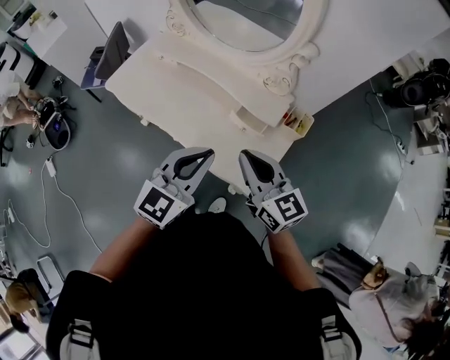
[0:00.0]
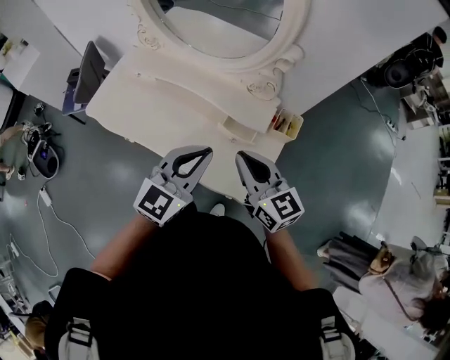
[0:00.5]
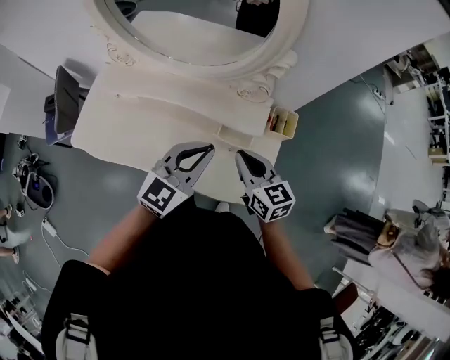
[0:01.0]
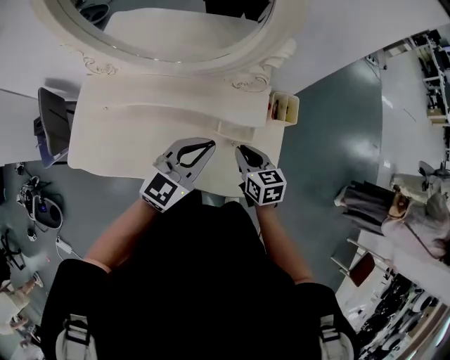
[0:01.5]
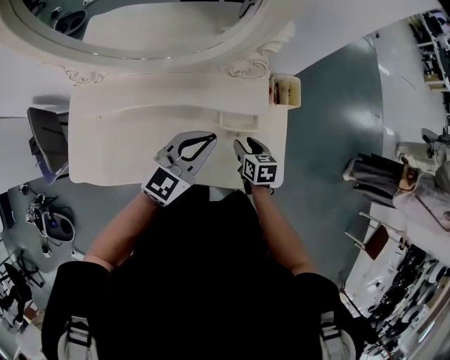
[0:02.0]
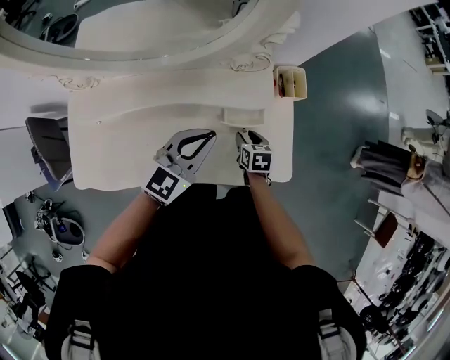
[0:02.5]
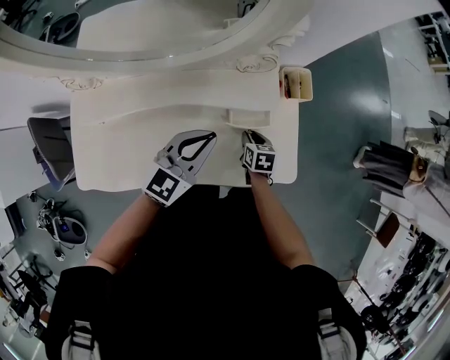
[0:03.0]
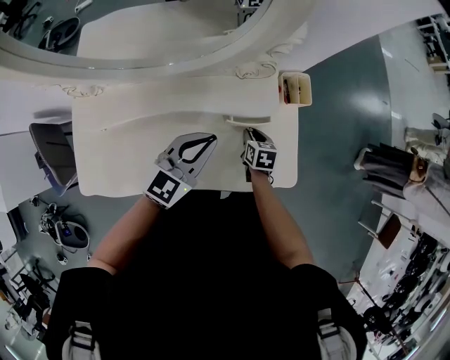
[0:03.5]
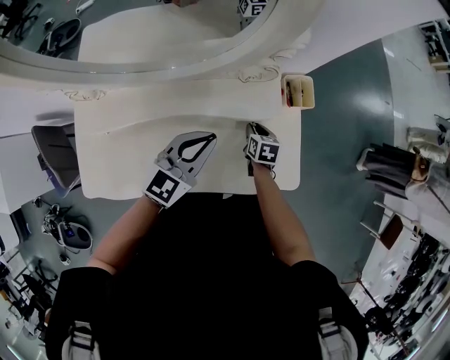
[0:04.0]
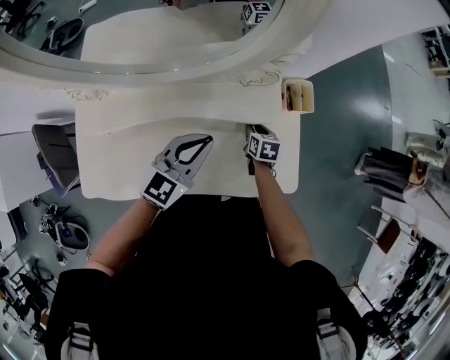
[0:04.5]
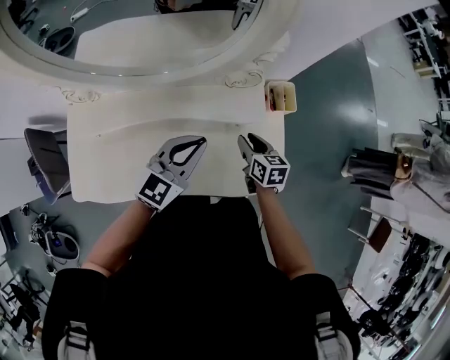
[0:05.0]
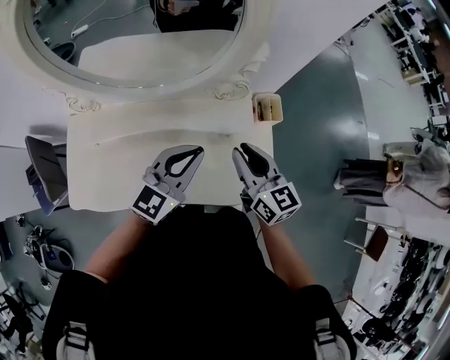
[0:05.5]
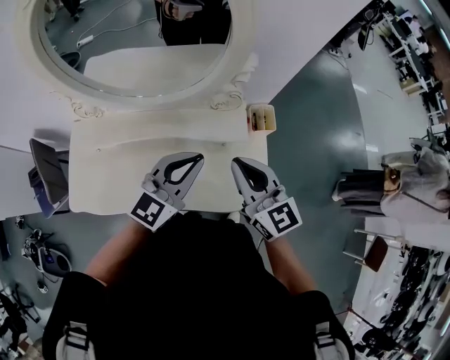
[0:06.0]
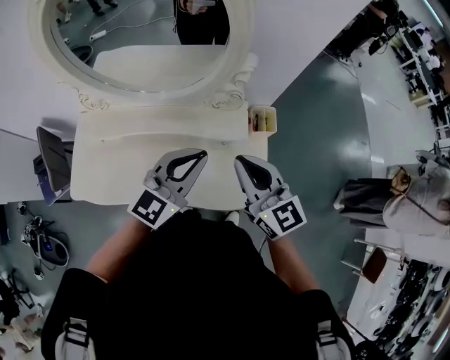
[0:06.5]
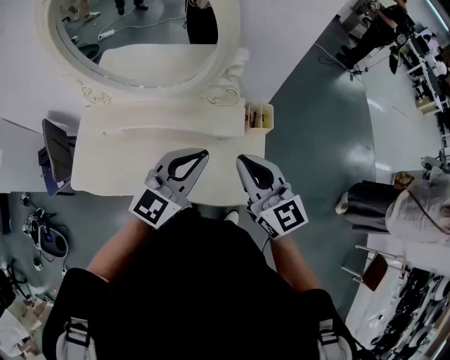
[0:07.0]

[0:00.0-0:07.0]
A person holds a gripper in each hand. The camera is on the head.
0:00.0 to 0:02.0: The right gripper shifts roughly 30 cm downward, angles its fingers downward, by about 40 degrees, and opens; the left gripper changes place by roughly 25 cm, and rotates approximately 40 degrees.
0:02.0 to 0:03.5: The right gripper moves downward, about 5 cm.
0:03.5 to 0:05.0: The right gripper is displaced upward by approximately 10 cm.
0:05.0 to 0:07.0: The right gripper shifts roughly 30 cm upward, tilts its fingers some 30 degrees upward, and closes its fingers; the left gripper goes roughly 20 cm upward, to the right and backward.

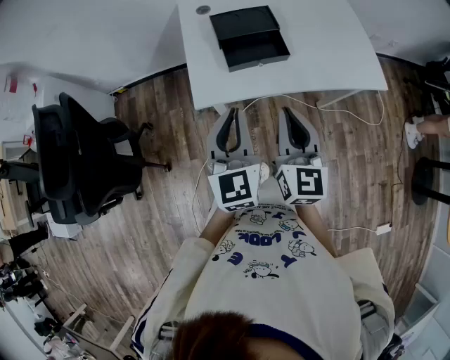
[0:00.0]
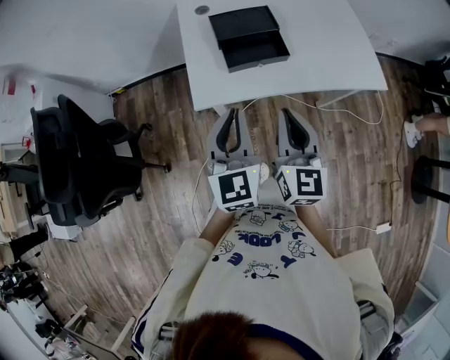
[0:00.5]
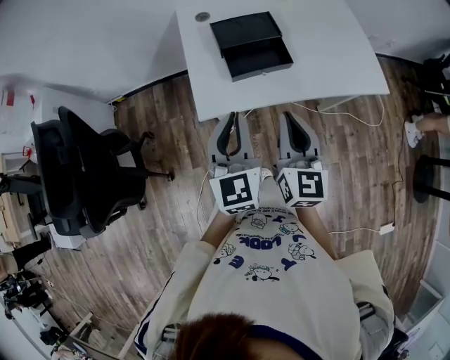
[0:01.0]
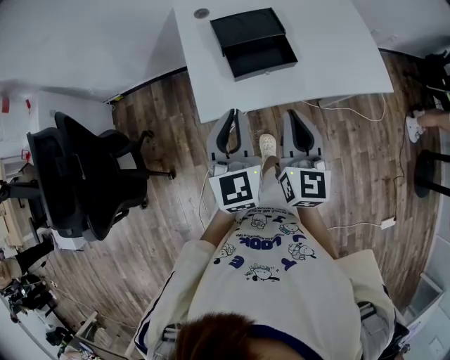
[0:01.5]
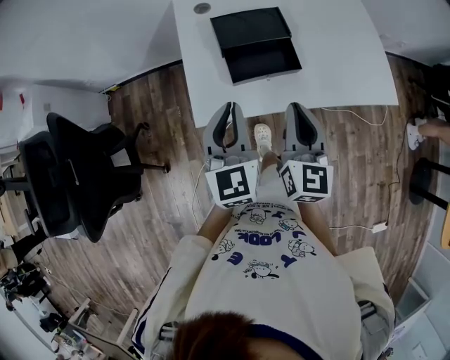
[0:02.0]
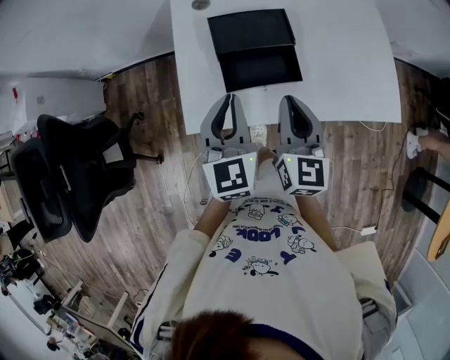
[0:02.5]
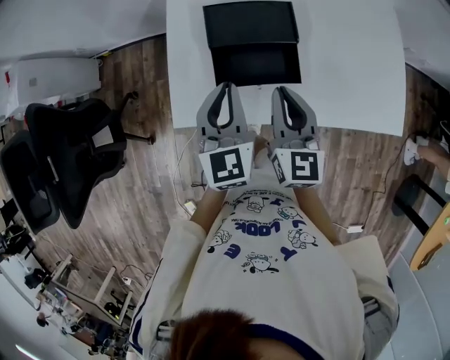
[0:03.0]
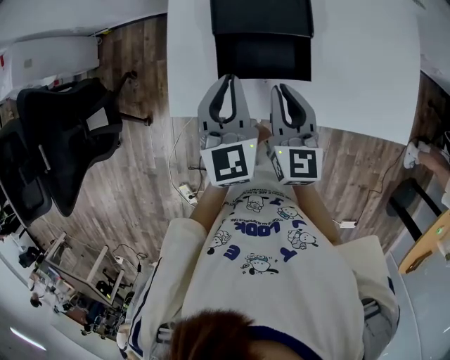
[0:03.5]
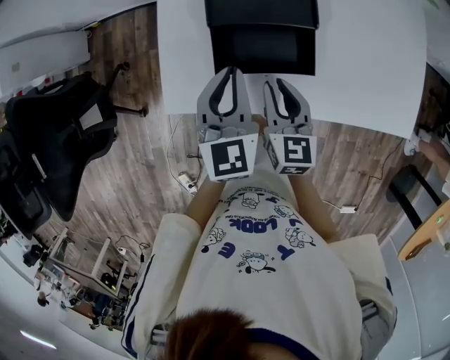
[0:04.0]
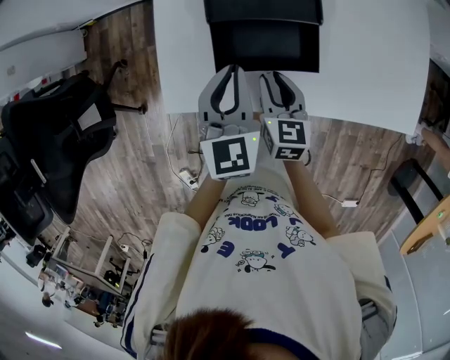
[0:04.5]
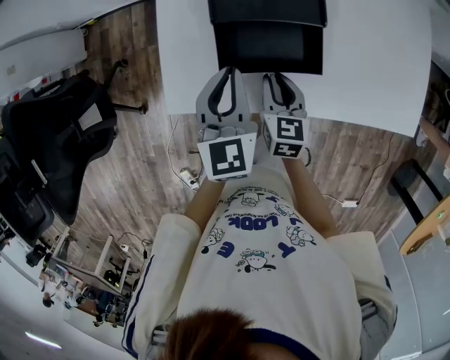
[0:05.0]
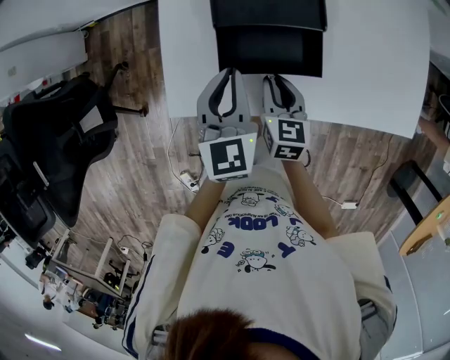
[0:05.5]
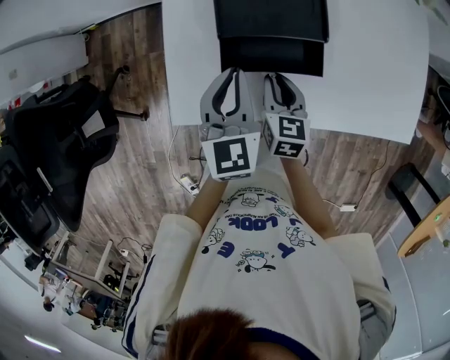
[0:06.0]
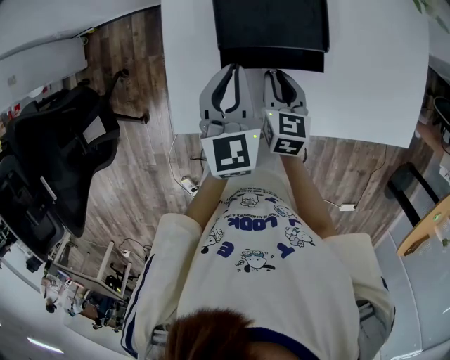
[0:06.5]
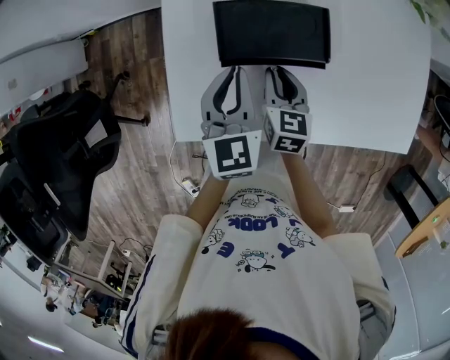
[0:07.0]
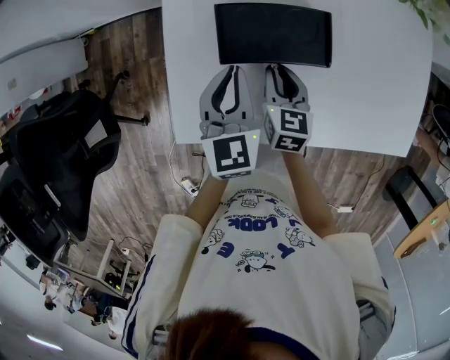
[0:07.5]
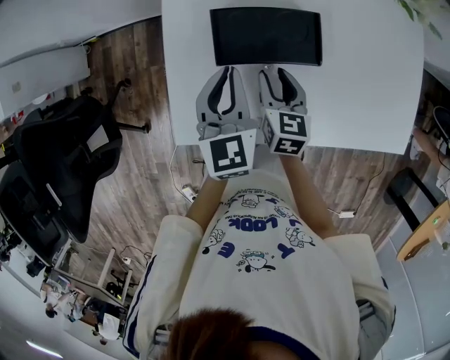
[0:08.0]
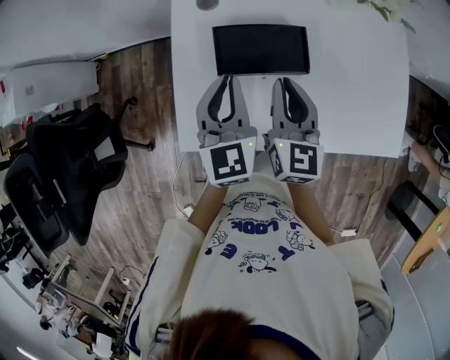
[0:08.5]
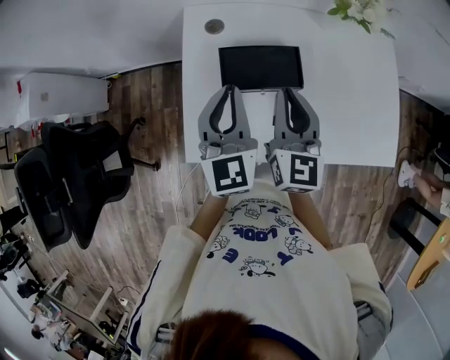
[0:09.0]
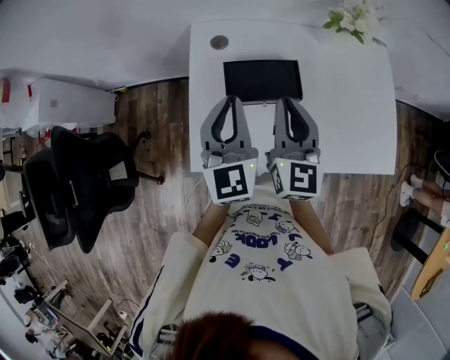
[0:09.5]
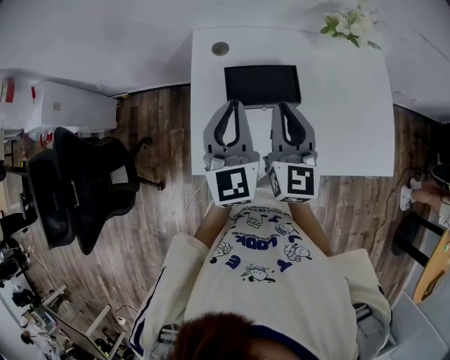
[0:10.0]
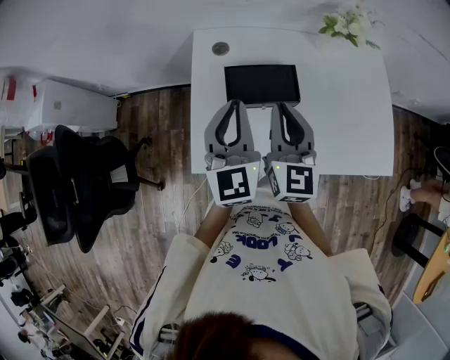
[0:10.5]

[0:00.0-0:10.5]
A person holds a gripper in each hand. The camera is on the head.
0:00.0 to 0:02.0: Both grippers travel together forward, some 10 cm.
0:02.0 to 0:04.0: The left gripper moves forward, downward and to the right, some 15 cm. Meanwhile the right gripper heads downward and forward, covering about 20 cm, and changes its angle by about 30 degrees.
0:04.0 to 0:06.5: The left gripper heads forward, covering roughly 5 cm; the right gripper is displaced forward and downward by roughly 10 cm.
0:06.5 to 0:08.5: The left gripper moves upward, about 5 cm. The right gripper shifts some 15 cm upward, turns by roughly 20 degrees, and opens, then closes again.
0:08.5 to 0:10.5: Both grippers travel together upward, about 10 cm.

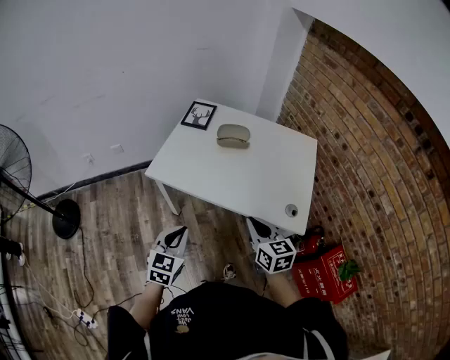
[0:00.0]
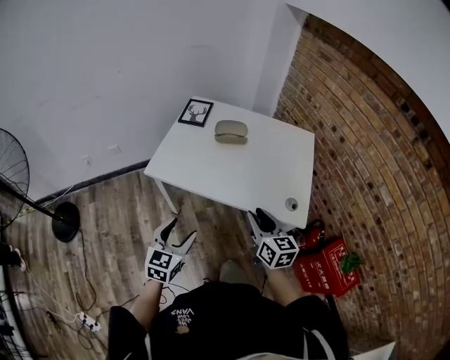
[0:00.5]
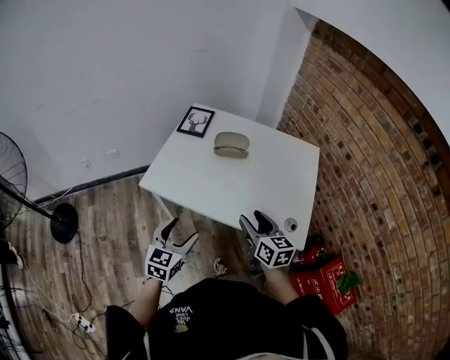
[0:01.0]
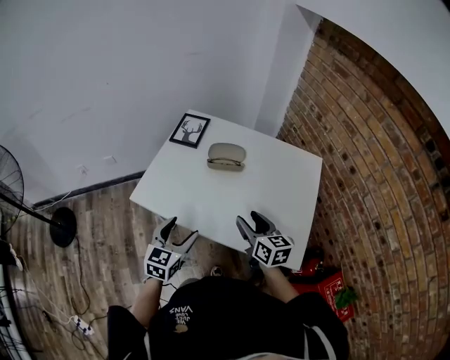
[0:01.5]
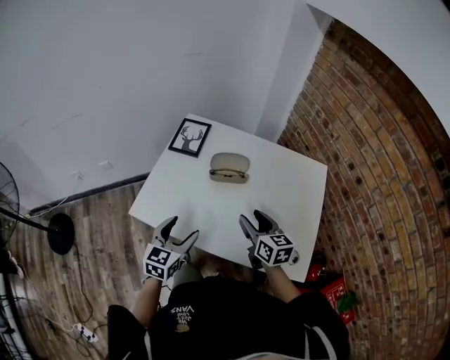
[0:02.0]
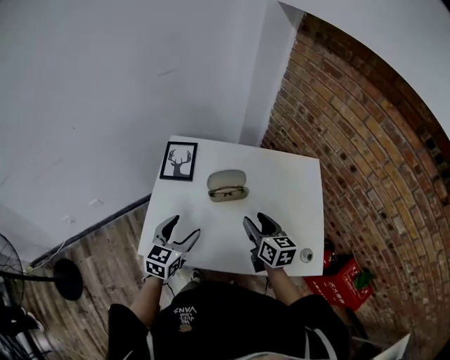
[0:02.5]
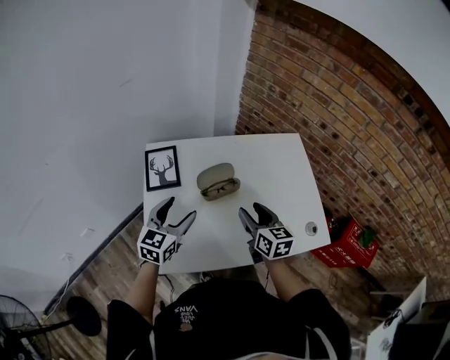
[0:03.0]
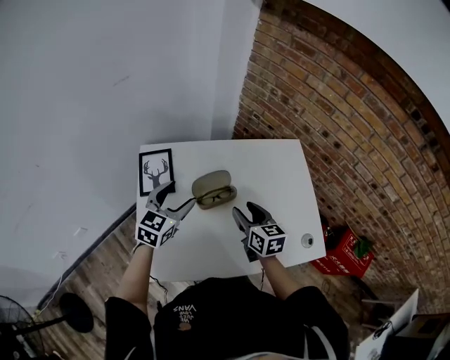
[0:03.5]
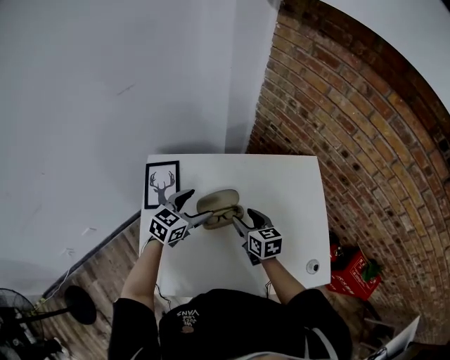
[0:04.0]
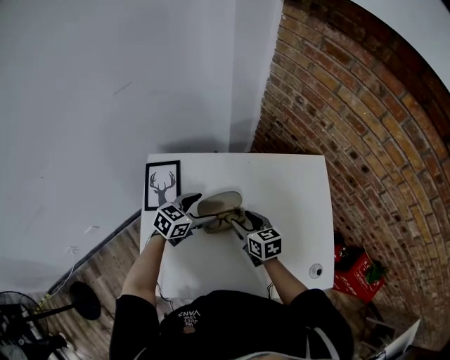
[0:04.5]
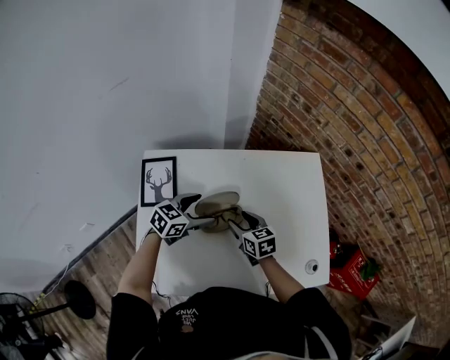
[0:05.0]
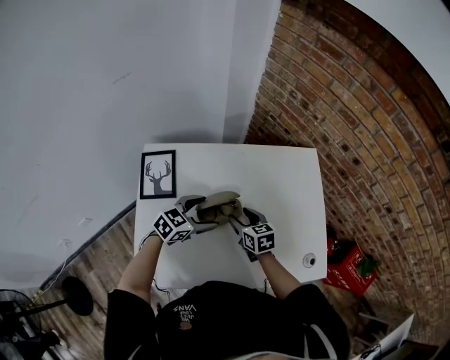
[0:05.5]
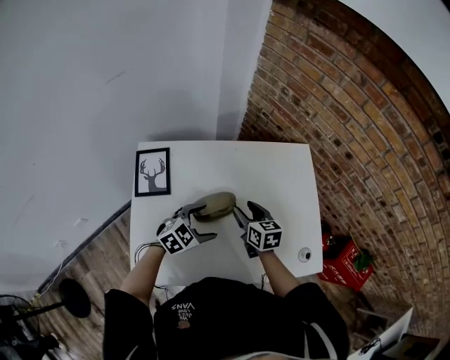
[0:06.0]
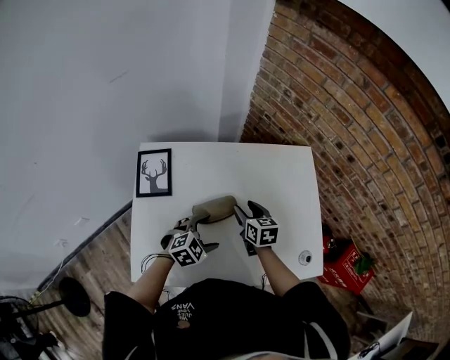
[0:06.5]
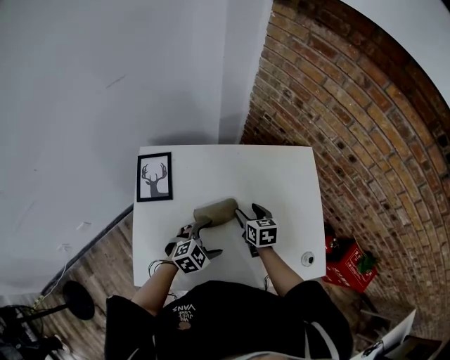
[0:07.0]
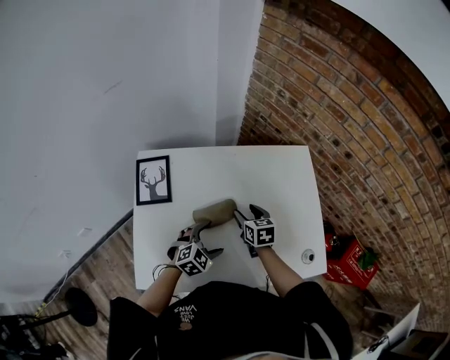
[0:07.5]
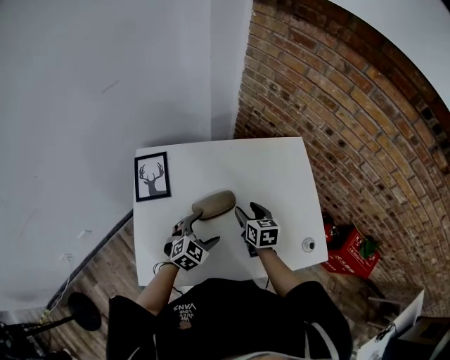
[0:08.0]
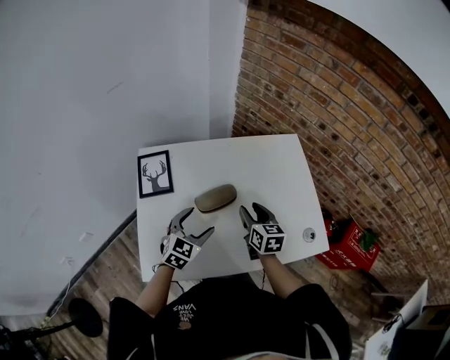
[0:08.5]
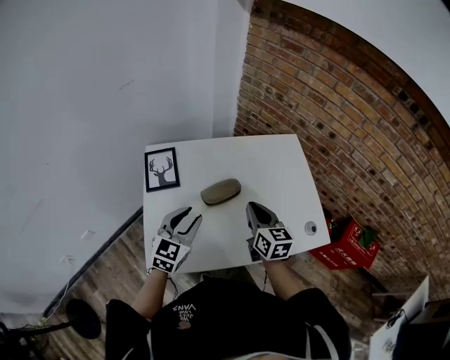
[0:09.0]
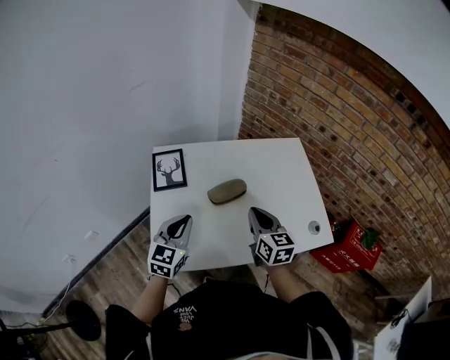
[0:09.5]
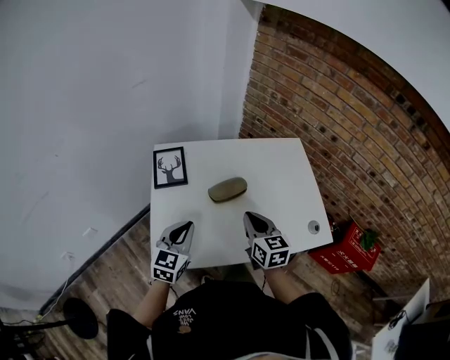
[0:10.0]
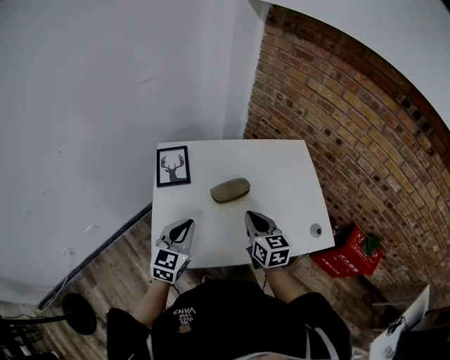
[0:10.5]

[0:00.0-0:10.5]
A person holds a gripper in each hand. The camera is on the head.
0:00.0 to 0:02.0: Both grippers move forward, approximately 25 cm. The left gripper opens up; the right gripper opens its fingers.
0:02.0 to 0:04.0: The left gripper moves roughly 30 cm, and turns by roughly 40 degrees, while the right gripper changes place by about 20 cm.
0:04.0 to 0:06.5: The left gripper travels backward, to the right and downward by some 20 cm, and turns by some 40 degrees.
0:06.5 to 0:08.5: The left gripper shifts roughly 10 cm upward and to the left, and rotates about 30 degrees, while the right gripper heads backward and upward, covering some 10 cm.
0:08.5 to 0:10.5: Both grippers move backward, to the left and upward, roughly 15 cm. The left gripper swivels some 20 degrees, and closes. Meanwhile the right gripper closes up.
